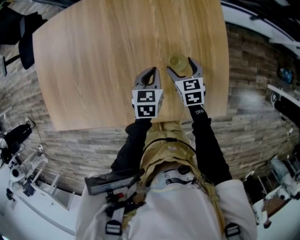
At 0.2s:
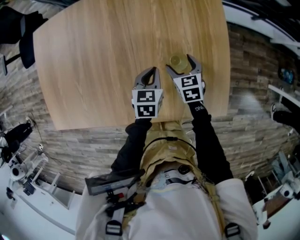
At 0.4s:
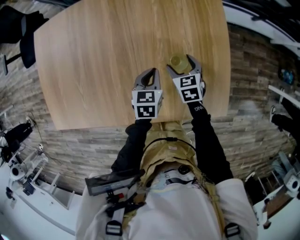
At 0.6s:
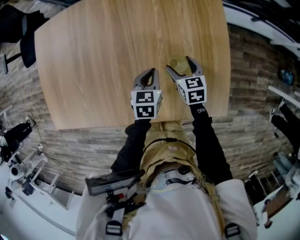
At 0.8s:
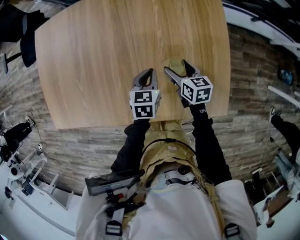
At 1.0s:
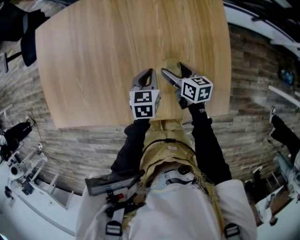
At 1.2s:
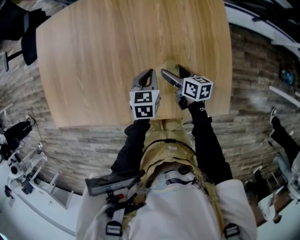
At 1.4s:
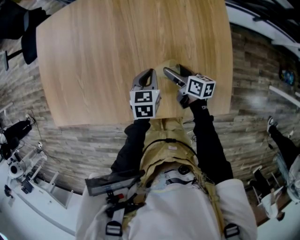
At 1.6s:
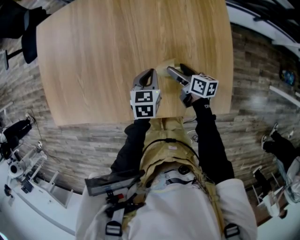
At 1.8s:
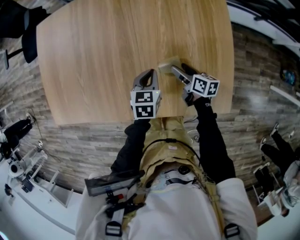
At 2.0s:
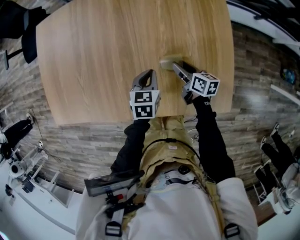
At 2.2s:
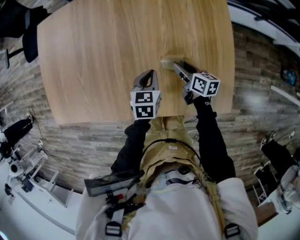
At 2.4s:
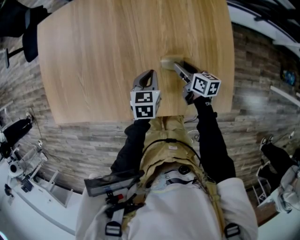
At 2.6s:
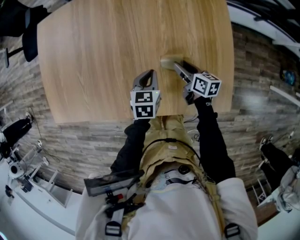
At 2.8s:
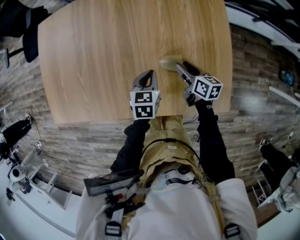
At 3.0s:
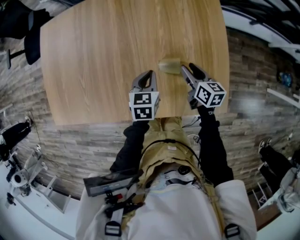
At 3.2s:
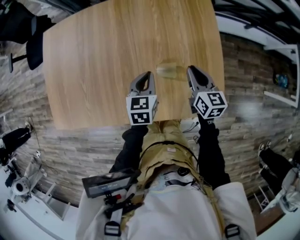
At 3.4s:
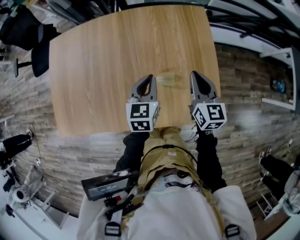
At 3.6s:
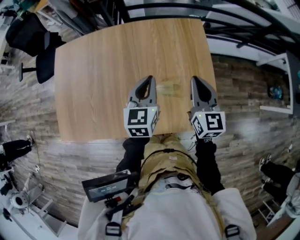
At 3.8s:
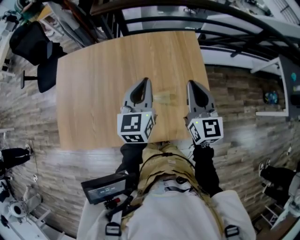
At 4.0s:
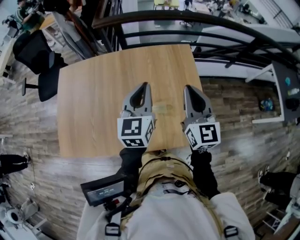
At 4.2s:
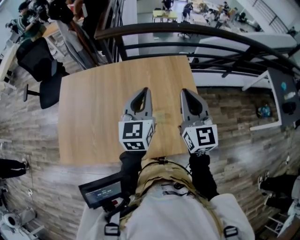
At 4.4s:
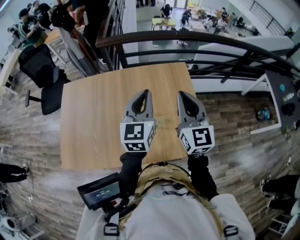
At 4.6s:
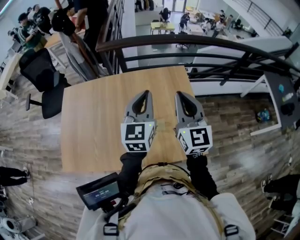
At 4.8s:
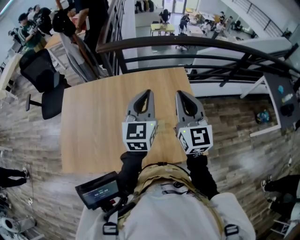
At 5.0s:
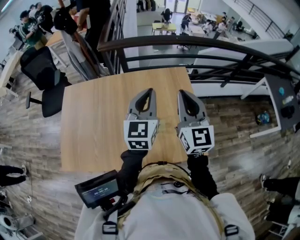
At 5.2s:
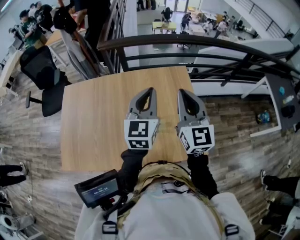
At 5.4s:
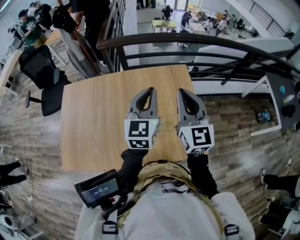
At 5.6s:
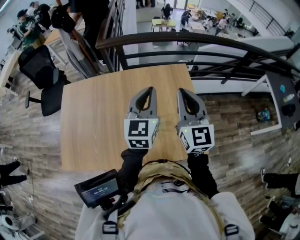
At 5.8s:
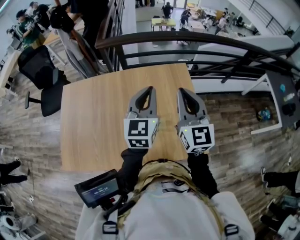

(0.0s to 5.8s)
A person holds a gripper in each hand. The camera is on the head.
0.0s - 1.4s: The right gripper ends up some 5 cm from where it was, and changes its angle by roughly 50 degrees.
1.4s - 2.8s: The right gripper closes its fingers.
2.8s - 4.4s: Both grippers move upward, about 40 cm. The left gripper angles its fingers upward, by approximately 40 degrees, while the right gripper points its fingers roughly 30 degrees further upward, and closes.
4.4s - 5.8s: The grippers move only a little.

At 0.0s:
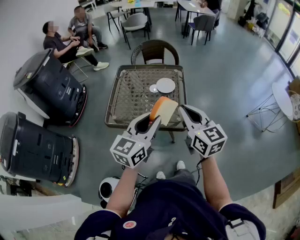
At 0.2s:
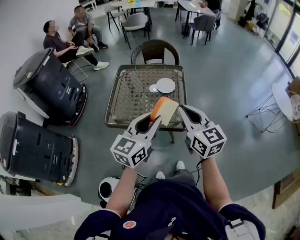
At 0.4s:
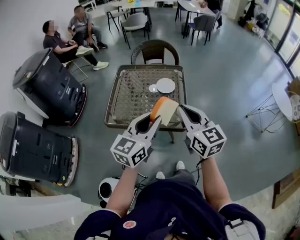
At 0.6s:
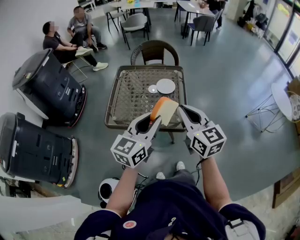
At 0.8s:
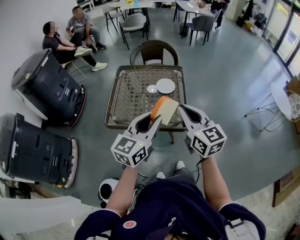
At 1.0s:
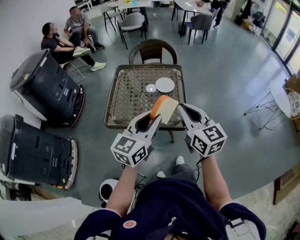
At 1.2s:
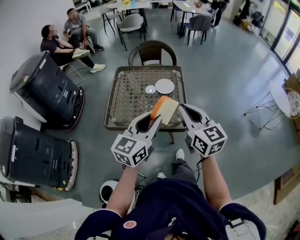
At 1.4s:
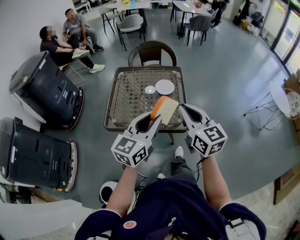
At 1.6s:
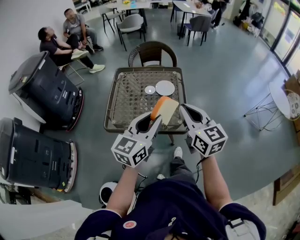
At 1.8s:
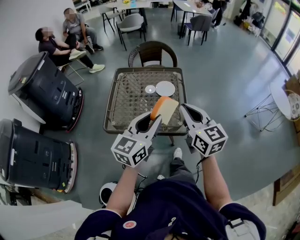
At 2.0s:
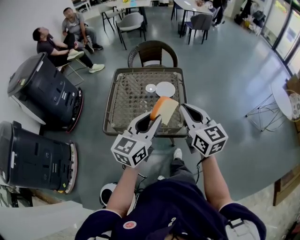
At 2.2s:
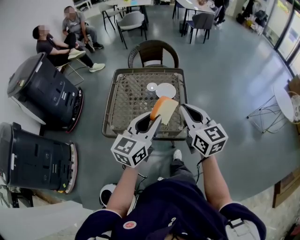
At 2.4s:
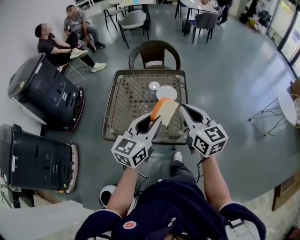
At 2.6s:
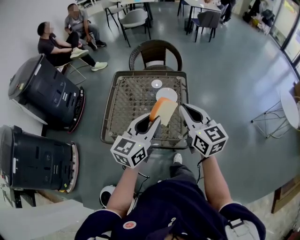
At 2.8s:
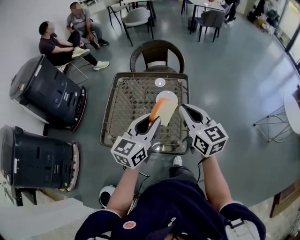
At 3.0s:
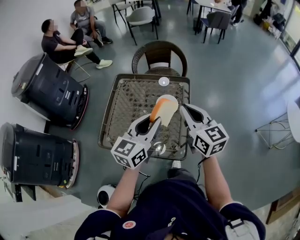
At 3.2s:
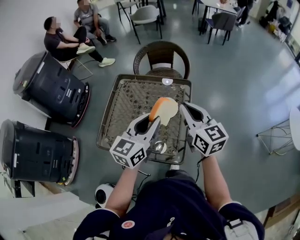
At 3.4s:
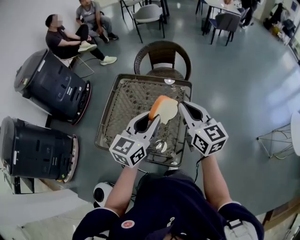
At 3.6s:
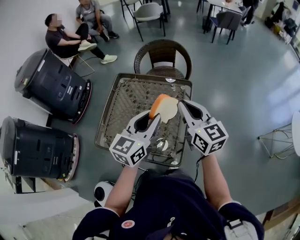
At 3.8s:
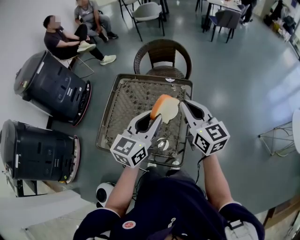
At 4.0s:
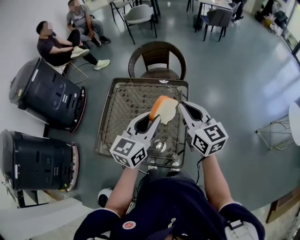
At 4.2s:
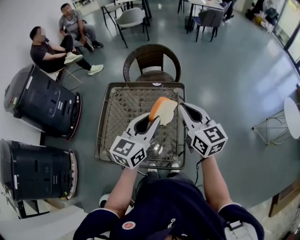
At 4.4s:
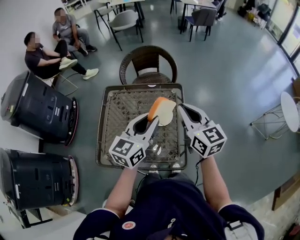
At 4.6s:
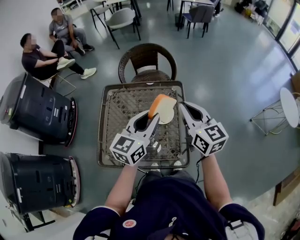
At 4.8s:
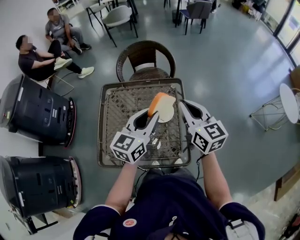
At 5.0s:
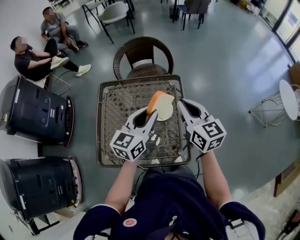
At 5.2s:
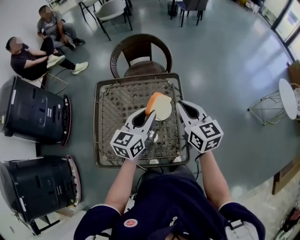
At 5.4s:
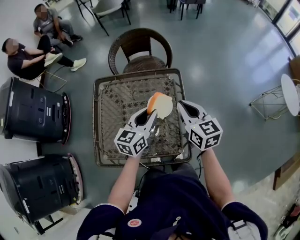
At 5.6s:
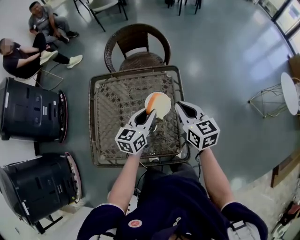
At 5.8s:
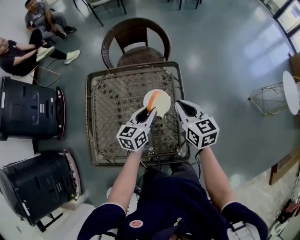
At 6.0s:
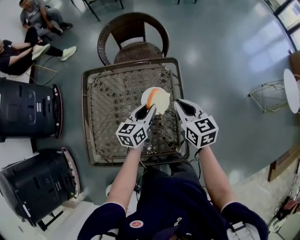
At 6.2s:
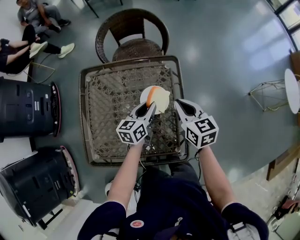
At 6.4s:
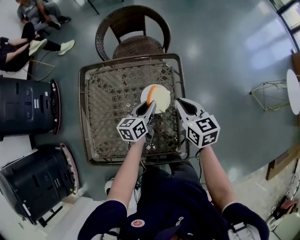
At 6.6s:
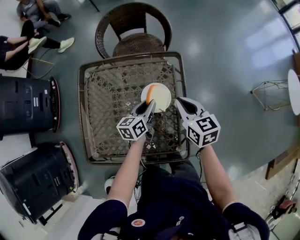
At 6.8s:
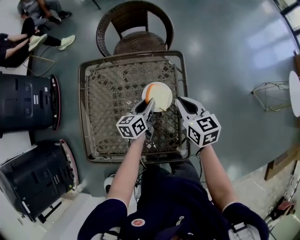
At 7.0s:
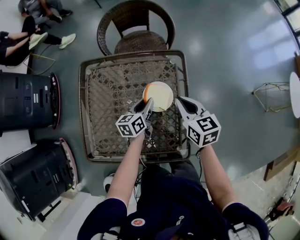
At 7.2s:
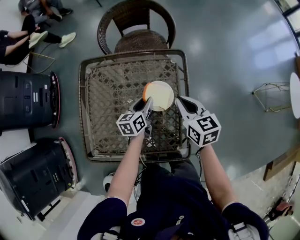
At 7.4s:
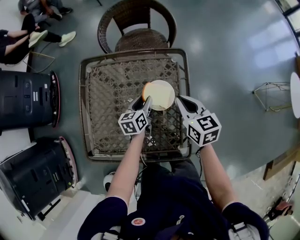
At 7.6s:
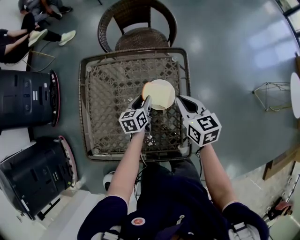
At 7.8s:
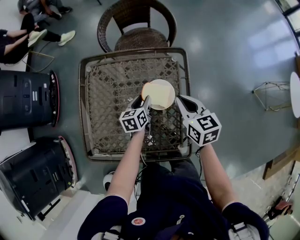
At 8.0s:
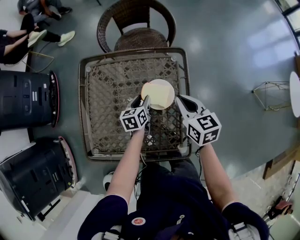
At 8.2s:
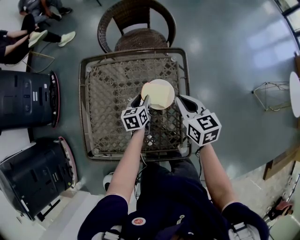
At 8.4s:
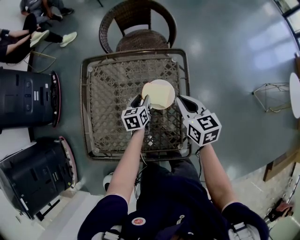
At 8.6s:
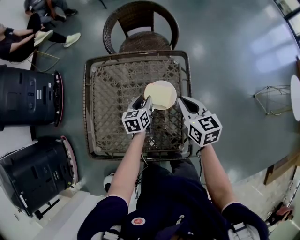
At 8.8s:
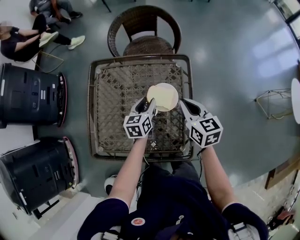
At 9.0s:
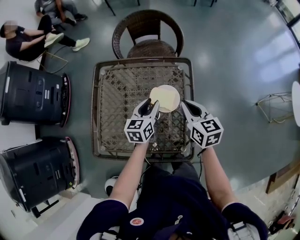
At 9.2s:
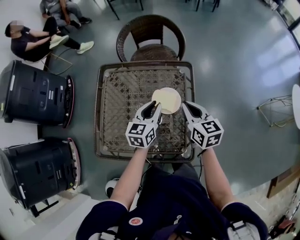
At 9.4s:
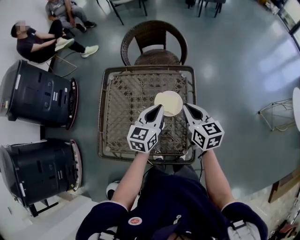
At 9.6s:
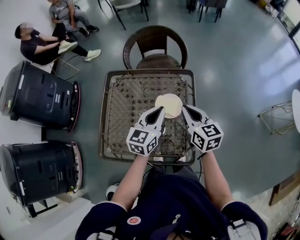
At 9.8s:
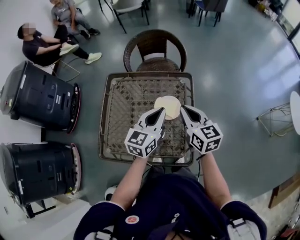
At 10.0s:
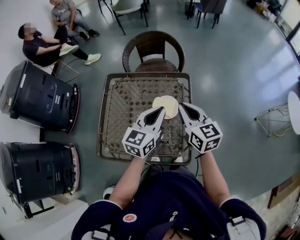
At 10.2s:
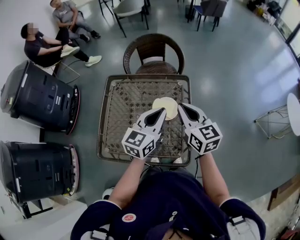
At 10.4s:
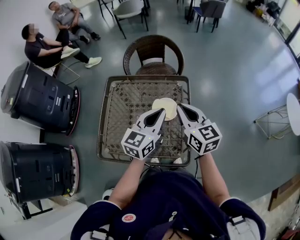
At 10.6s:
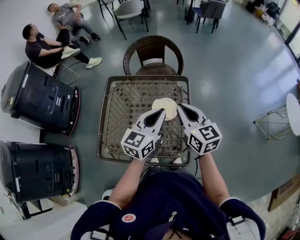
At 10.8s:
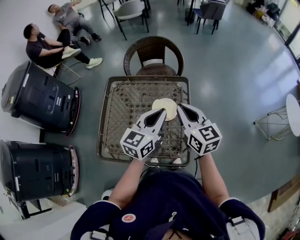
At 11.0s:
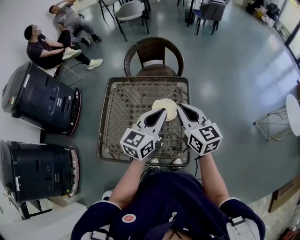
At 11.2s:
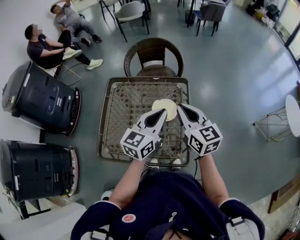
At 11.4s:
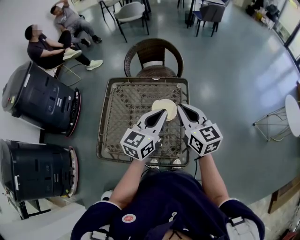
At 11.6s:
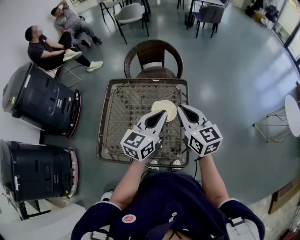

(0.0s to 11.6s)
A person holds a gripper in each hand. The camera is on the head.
0.0s - 1.4s: The grippers stay close to where they were, moving slightly.
1.4s - 2.8s: The grippers both shift forward by about 20 cm.
2.8s - 4.4s: Both grippers move forward, approximately 10 cm.
4.4s - 5.8s: The left gripper is displaced downward and forward by some 20 cm. Meanwhile the right gripper goes roughly 15 cm downward.
5.8s - 7.2s: The left gripper moves downward, approximately 15 cm. Meanwhile the right gripper is displaced downward by approximately 5 cm.
7.2s - 8.8s: There are only small adjustments of the grippers.
8.8s - 10.2s: The left gripper is displaced upward by roughly 25 cm, changes its angle by some 30 degrees, and closes up; the right gripper is displaced upward by about 15 cm.
10.2s - 11.6s: There are only small adjustments of the grippers.

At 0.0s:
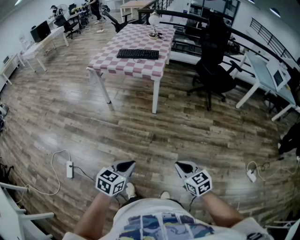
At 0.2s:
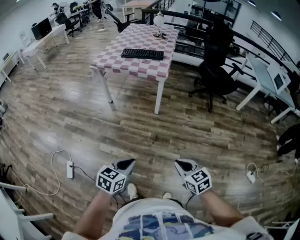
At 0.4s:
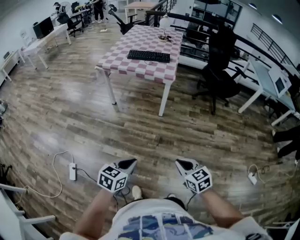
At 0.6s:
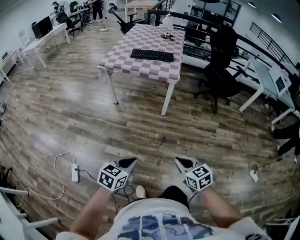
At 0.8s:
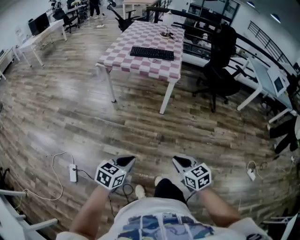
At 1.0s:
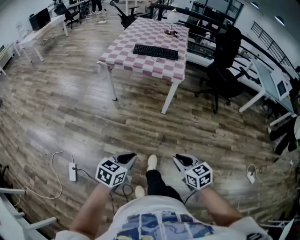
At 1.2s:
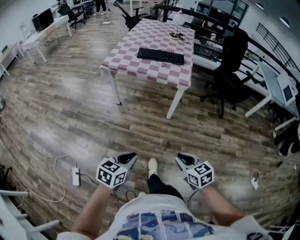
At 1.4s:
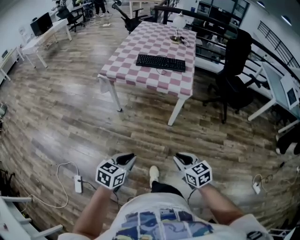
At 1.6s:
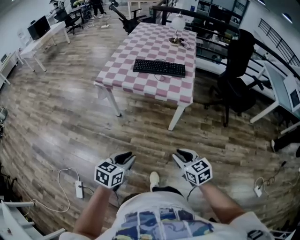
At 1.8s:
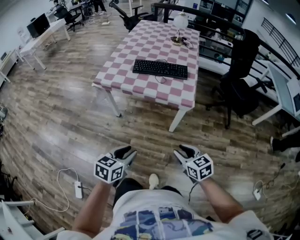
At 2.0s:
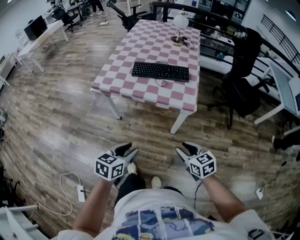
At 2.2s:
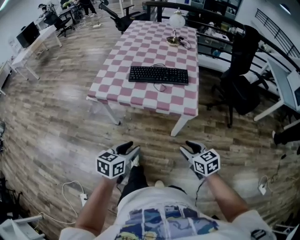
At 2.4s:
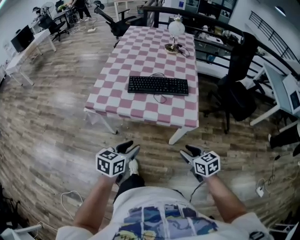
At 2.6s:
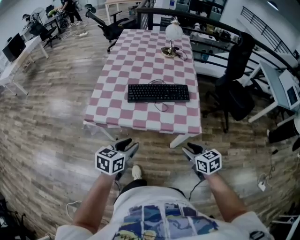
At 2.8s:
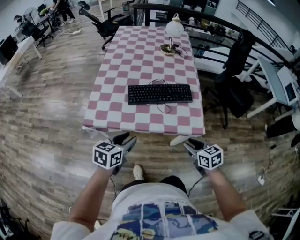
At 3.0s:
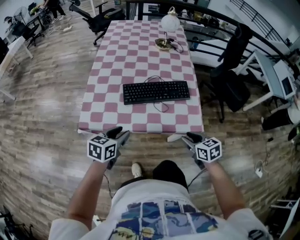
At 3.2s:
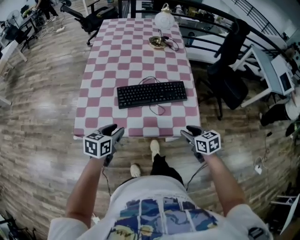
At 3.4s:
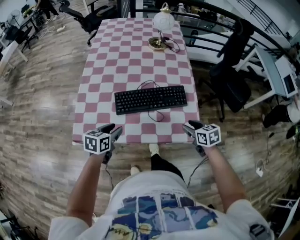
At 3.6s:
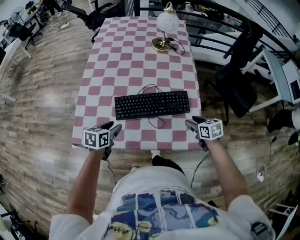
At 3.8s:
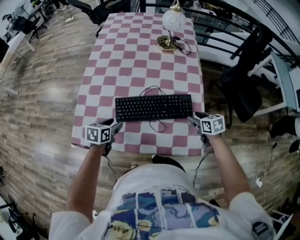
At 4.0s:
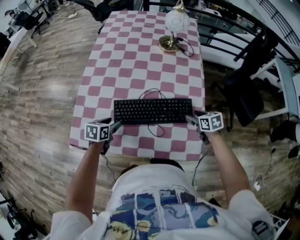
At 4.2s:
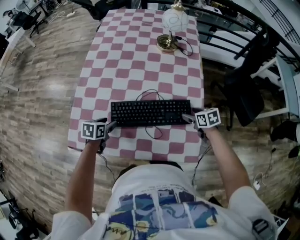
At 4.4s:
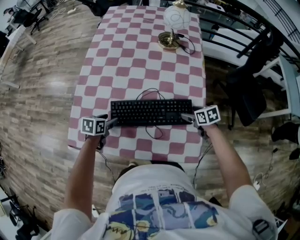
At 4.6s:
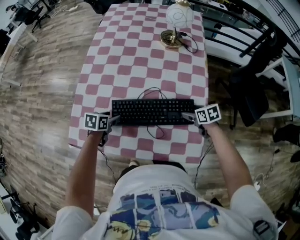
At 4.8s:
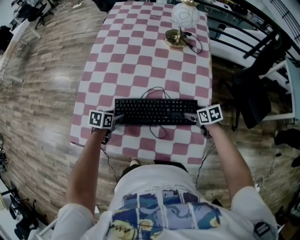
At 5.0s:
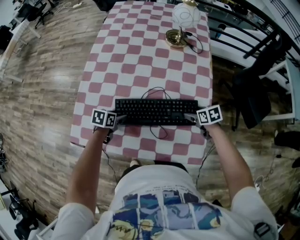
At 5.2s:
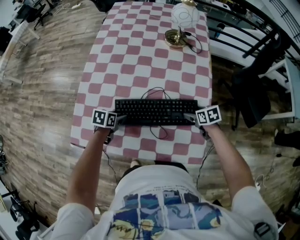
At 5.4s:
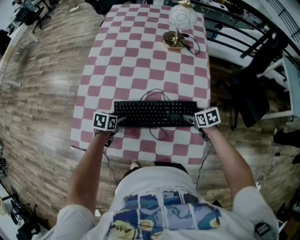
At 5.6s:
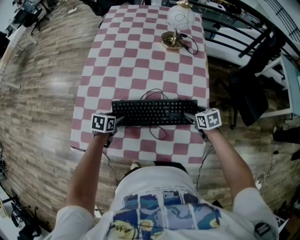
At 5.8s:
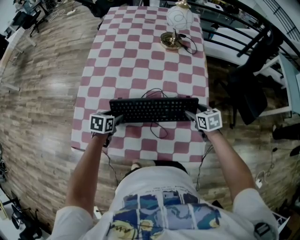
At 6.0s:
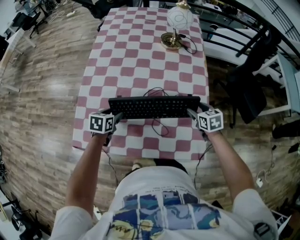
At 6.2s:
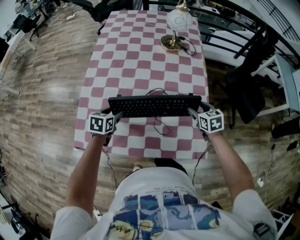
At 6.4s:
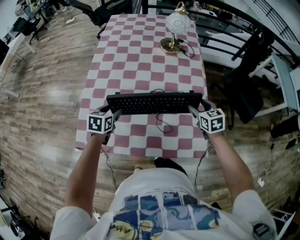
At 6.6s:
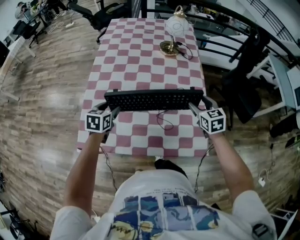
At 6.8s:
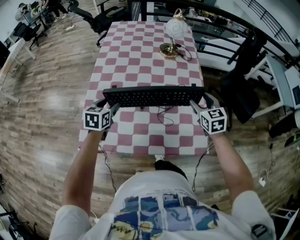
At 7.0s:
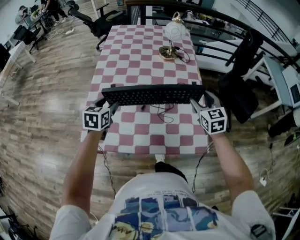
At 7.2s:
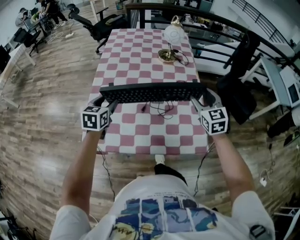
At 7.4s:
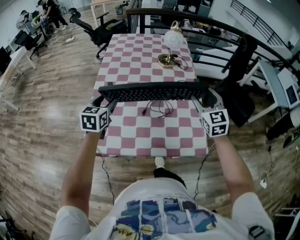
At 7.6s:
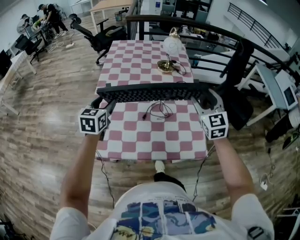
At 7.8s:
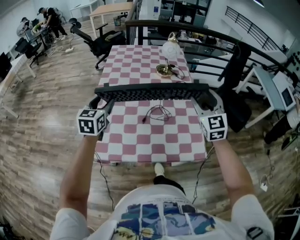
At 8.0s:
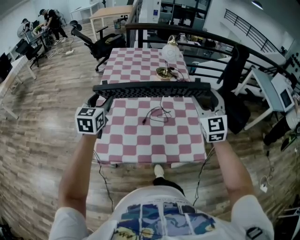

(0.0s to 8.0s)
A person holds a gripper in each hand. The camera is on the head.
0.0s - 1.6s: The two grippers travel together, forward and to the left, roughly 40 cm.
1.6s - 3.2s: Both grippers are carried forward, about 50 cm. The right gripper swivels some 20 degrees.
3.2s - 4.8s: The grippers both shift forward and downward by roughly 30 cm. The right gripper opens its fingers. Meanwhile the left gripper changes its angle by approximately 30 degrees, and opens up.
4.8s - 6.4s: Both grippers travel together upward, approximately 10 cm. The right gripper rotates roughly 30 degrees. Meanwhile the left gripper changes its angle by some 20 degrees.
6.4s - 8.0s: Both grippers move upward, approximately 30 cm. The left gripper tilts its fingers roughly 30 degrees upward. Meanwhile the right gripper points its fingers approximately 40 degrees further upward.
